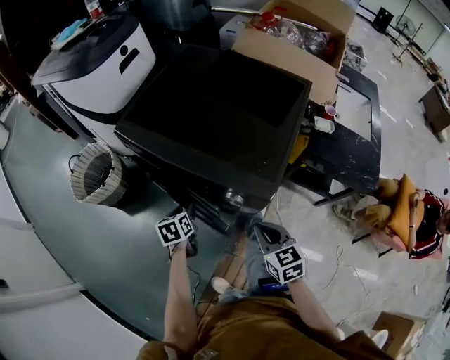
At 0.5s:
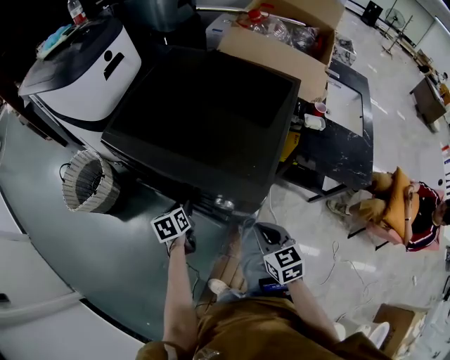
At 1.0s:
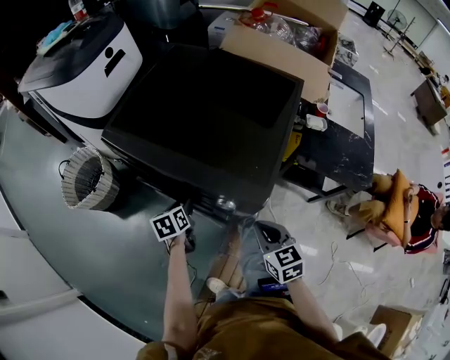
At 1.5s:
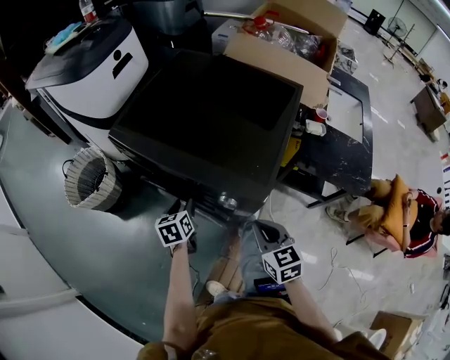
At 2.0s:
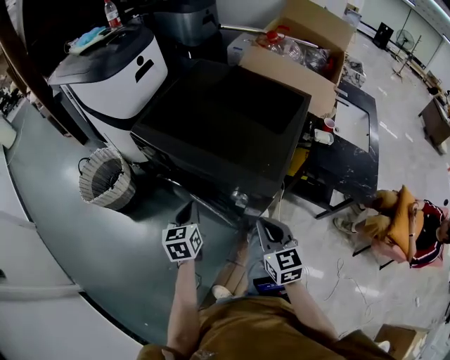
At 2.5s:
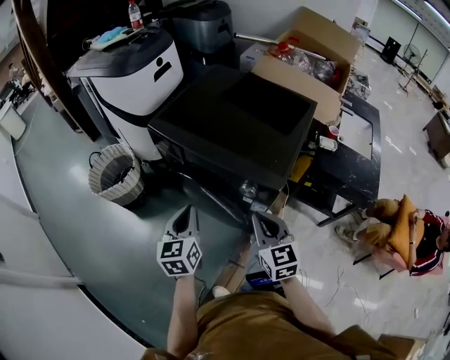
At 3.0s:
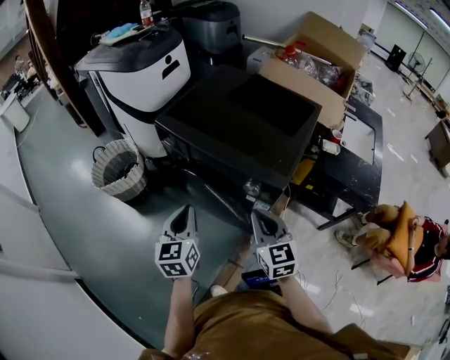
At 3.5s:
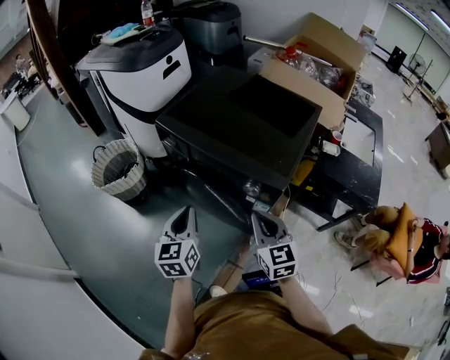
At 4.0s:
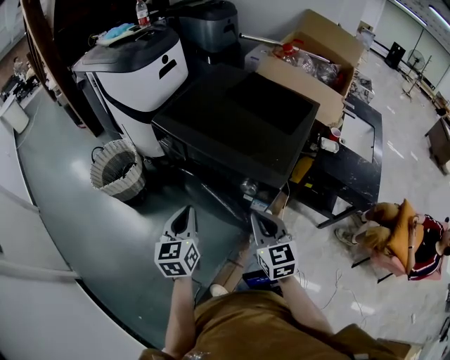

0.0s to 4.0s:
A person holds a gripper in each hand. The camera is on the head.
0.0s to 2.0s: The left gripper heads upward, covering approximately 10 cm, swivels some 20 degrees, and closes up, while the right gripper heads upward, covering roughly 5 cm.
2.0s to 4.0s: The right gripper moves about 5 cm; the left gripper travels backward and upward by about 15 cm.

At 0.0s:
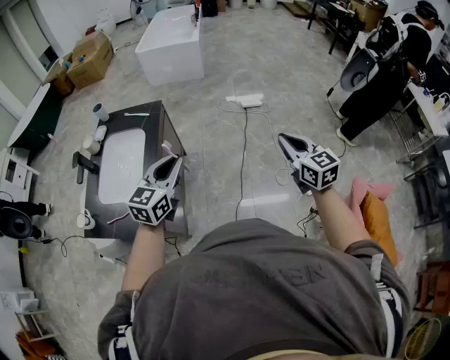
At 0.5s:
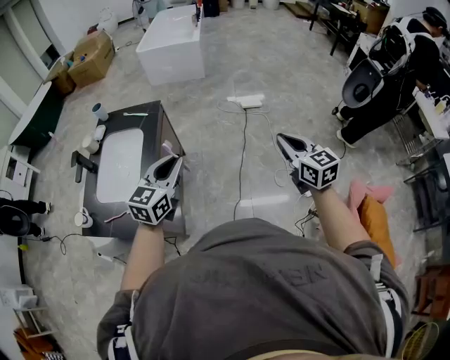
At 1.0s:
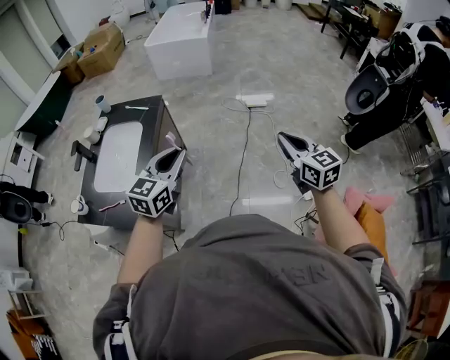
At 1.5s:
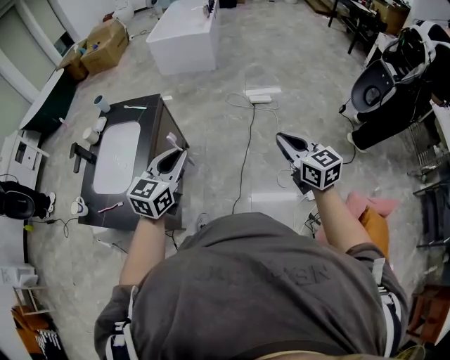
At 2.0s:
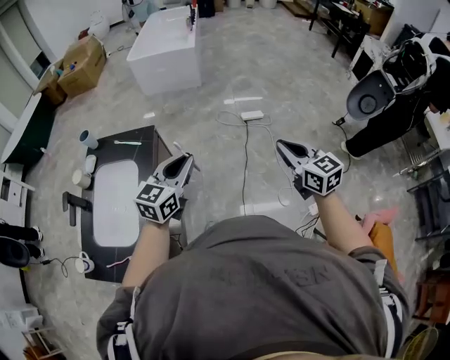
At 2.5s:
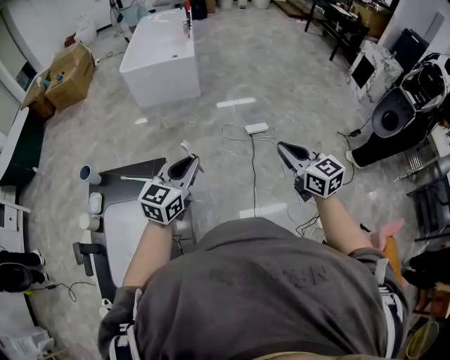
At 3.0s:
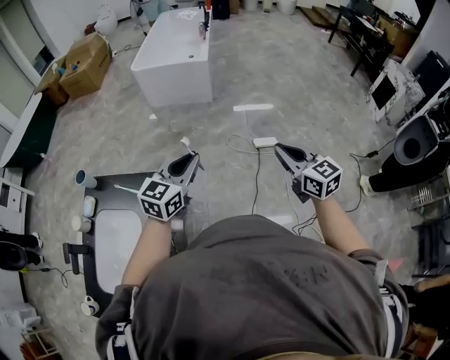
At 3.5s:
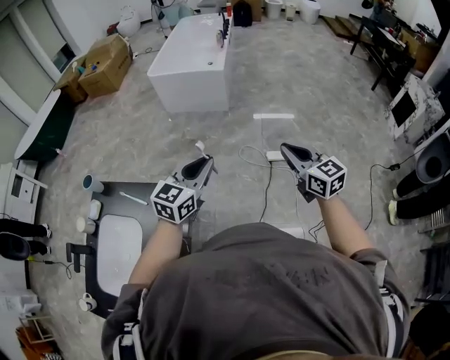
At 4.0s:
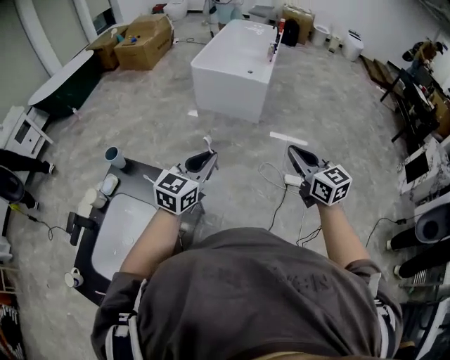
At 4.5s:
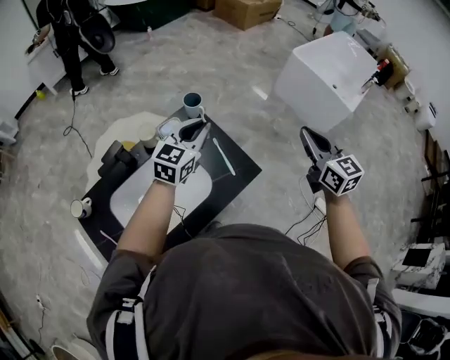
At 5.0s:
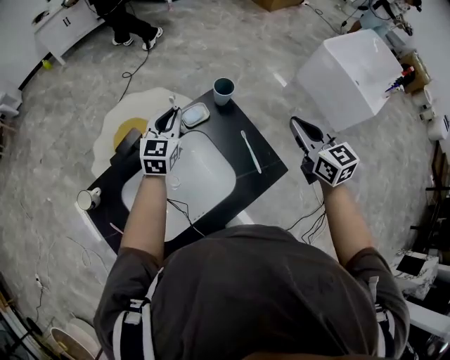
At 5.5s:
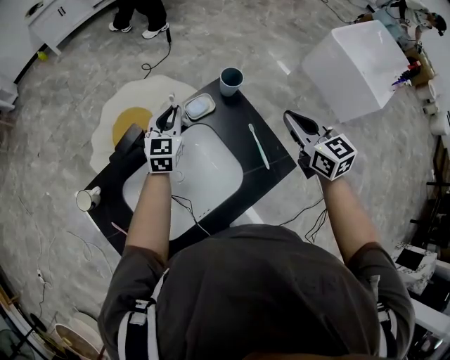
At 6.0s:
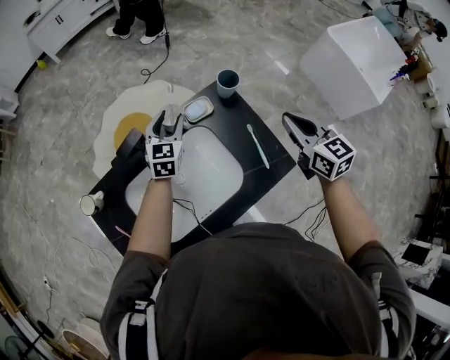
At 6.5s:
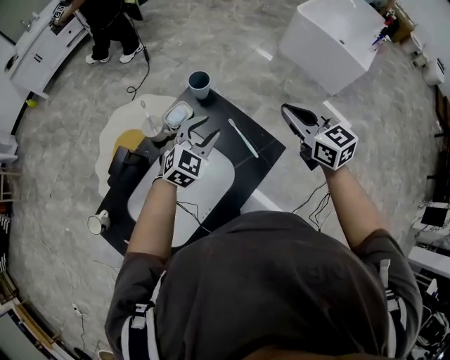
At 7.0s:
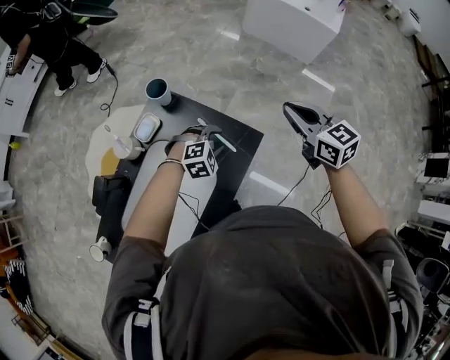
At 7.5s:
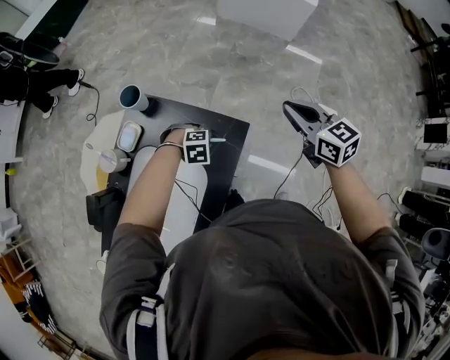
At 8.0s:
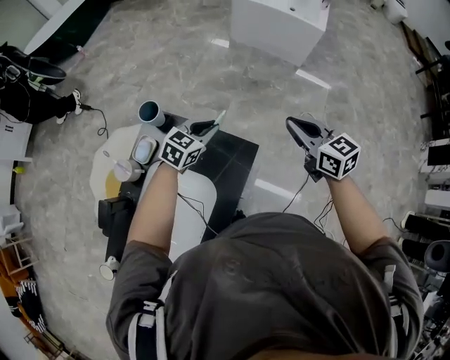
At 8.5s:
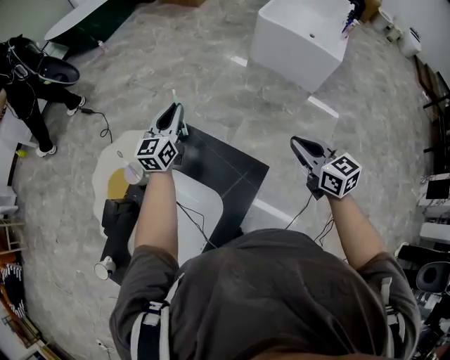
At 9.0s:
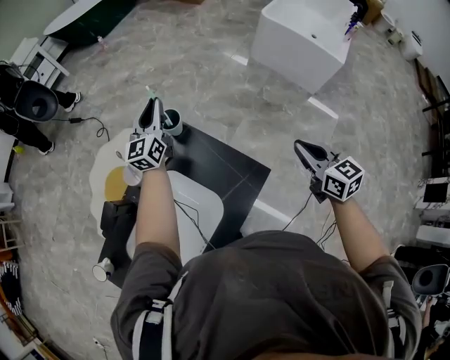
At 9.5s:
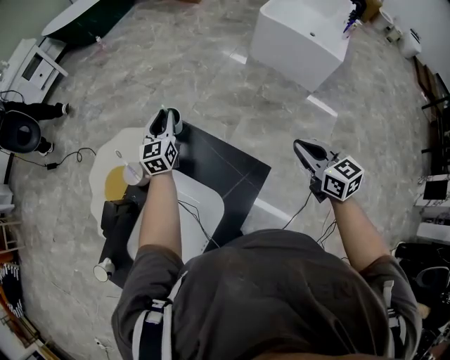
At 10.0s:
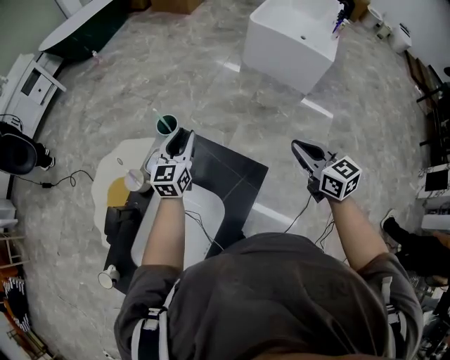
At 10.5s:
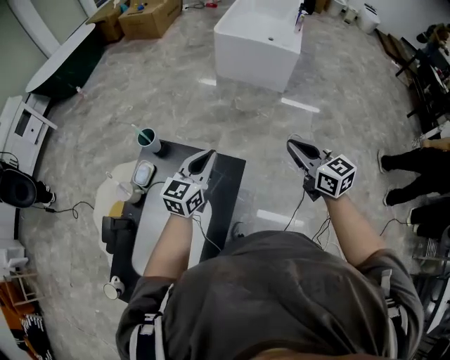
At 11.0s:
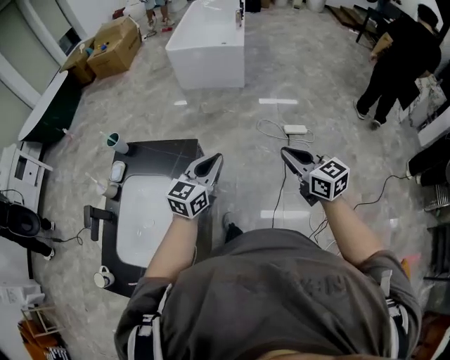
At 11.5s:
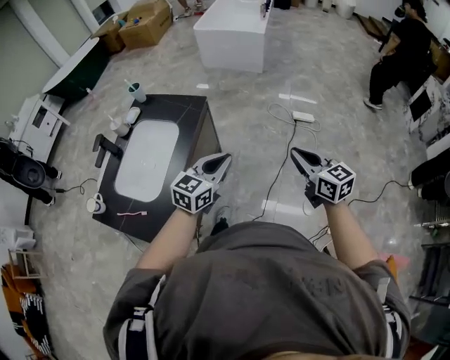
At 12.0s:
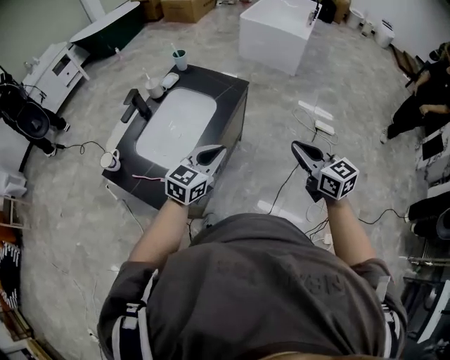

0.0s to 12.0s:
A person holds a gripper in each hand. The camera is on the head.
0.0s to 2.0s: The two grippers go roughly 20 cm forward.
2.0s to 4.0s: Both grippers move forward, some 40 cm.
4.0s to 6.0s: The pair of grippers is taken roughly 60 cm. The right gripper swivels approximately 40 degrees. Meanwhile the left gripper turns by some 60 degrees, and opens up.
6.0s to 8.0s: The right gripper moves some 25 cm, and swivels about 30 degrees. Meanwhile the left gripper swings up and down, approximately 20 cm each way, with 2 reversals, changes its angle by some 70 degrees, and closes.
8.0s to 10.0s: The left gripper swings up and down, approximately 10 cm each way, with 2 reversals, and changes its angle by roughly 40 degrees.
10.0s to 12.0s: The pair of grippers is taken about 60 cm. The left gripper swivels approximately 30 degrees, and closes its fingers.

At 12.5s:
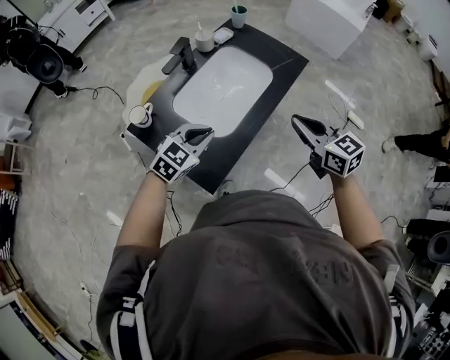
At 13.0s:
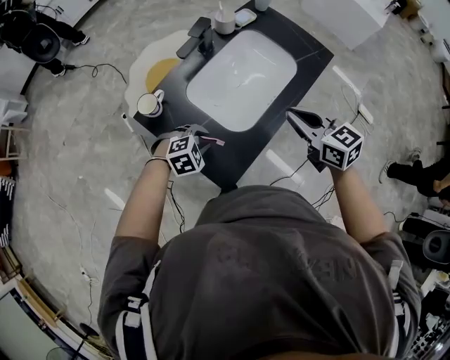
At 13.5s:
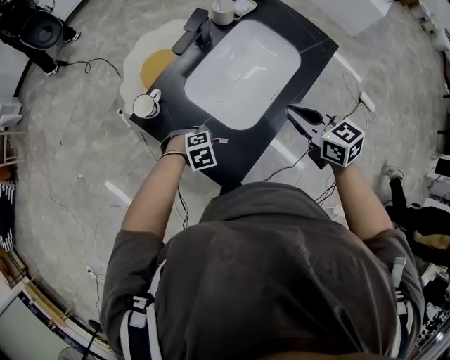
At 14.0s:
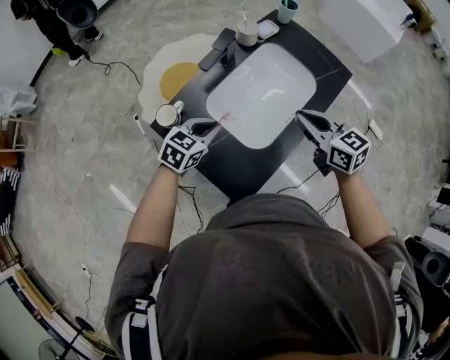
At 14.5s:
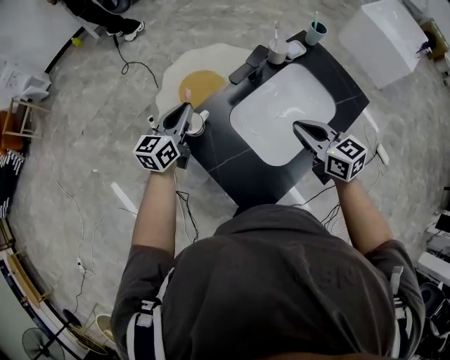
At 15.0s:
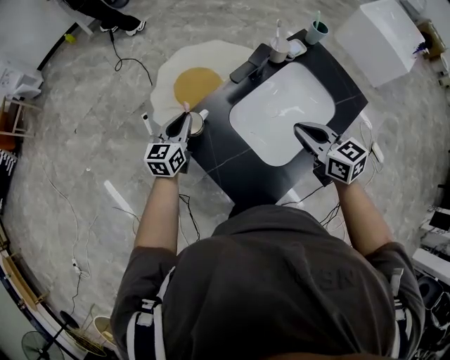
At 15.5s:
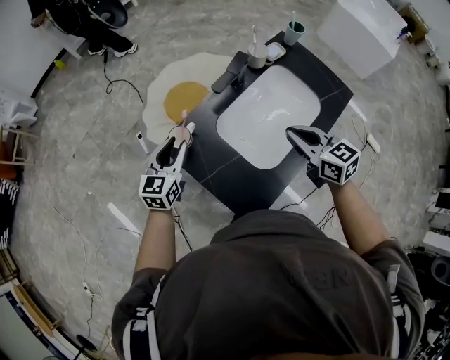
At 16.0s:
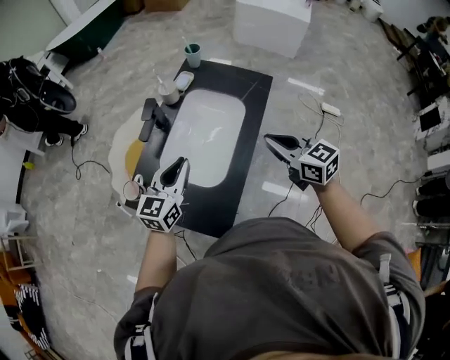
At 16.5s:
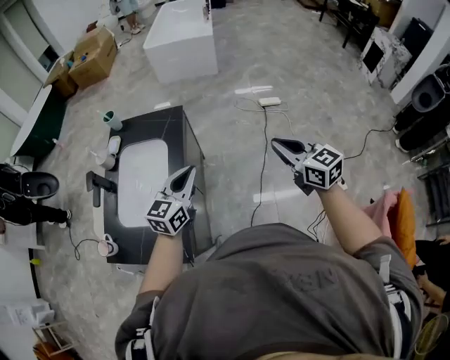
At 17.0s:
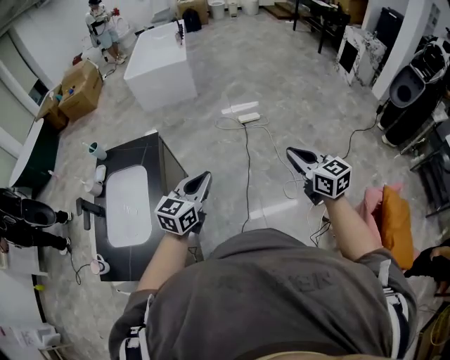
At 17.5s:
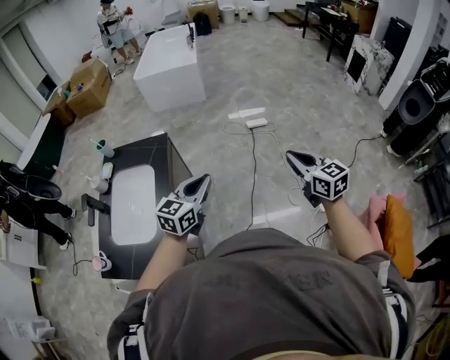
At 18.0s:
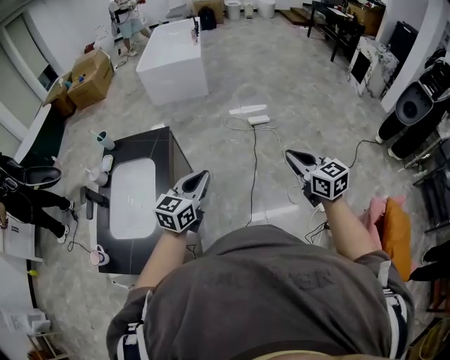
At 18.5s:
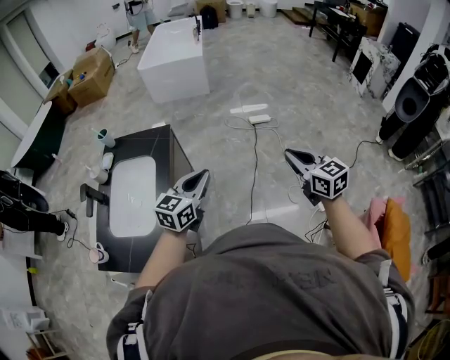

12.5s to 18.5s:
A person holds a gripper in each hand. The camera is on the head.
12.5s to 14.5s: The right gripper changes place by about 25 cm, while the left gripper goes downward and returns, some 20 cm each way, and rotates about 50 degrees.
14.5s to 16.5s: The pair of grippers is taken about 60 cm. The right gripper changes its angle by roughly 50 degrees, while the left gripper swivels some 50 degrees, and opens, then closes once more.
16.5s to 18.5s: The two grippers go roughly 15 cm to the right.

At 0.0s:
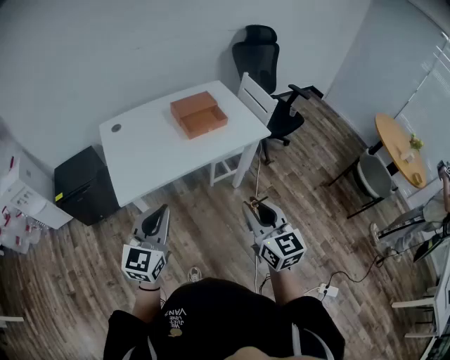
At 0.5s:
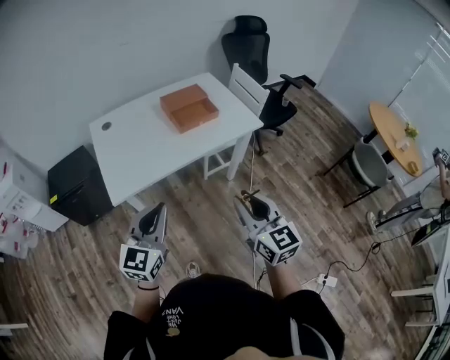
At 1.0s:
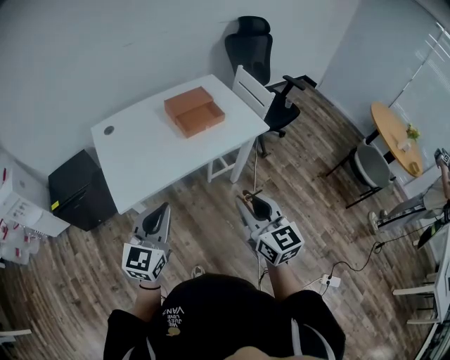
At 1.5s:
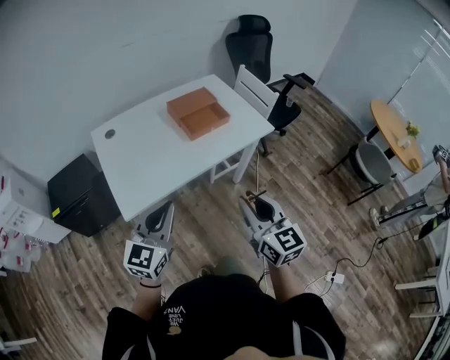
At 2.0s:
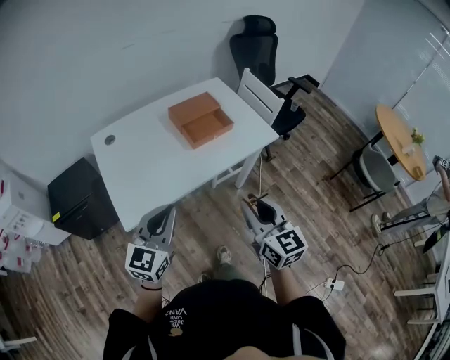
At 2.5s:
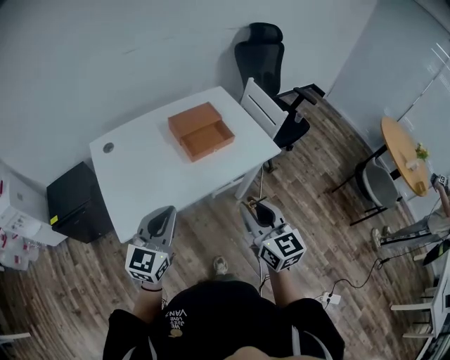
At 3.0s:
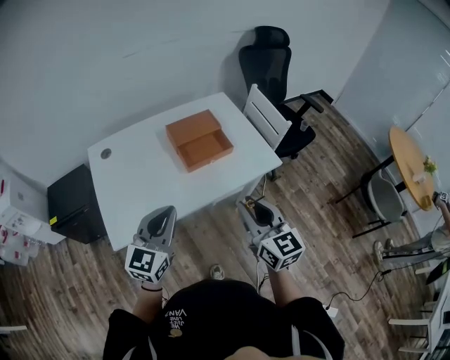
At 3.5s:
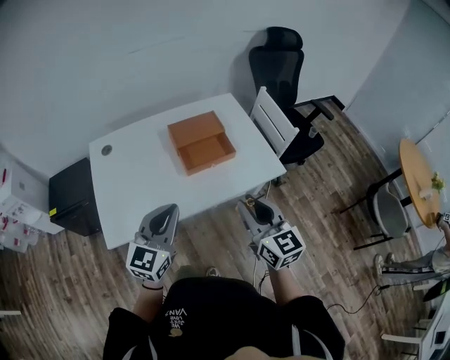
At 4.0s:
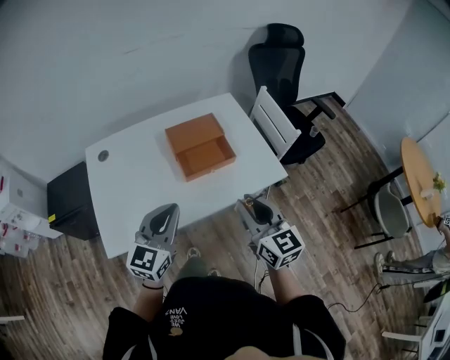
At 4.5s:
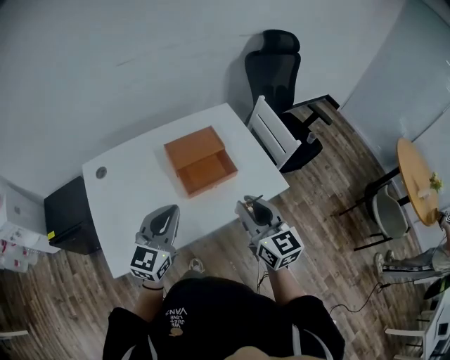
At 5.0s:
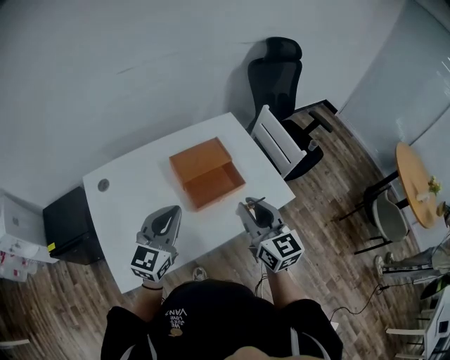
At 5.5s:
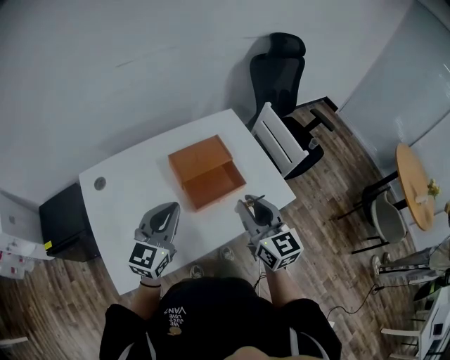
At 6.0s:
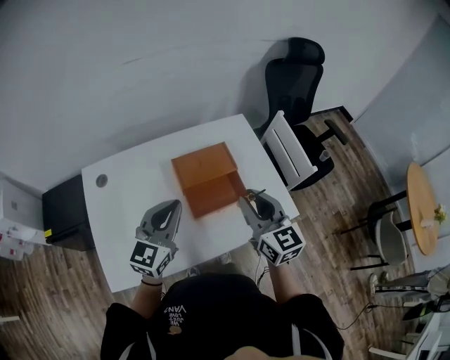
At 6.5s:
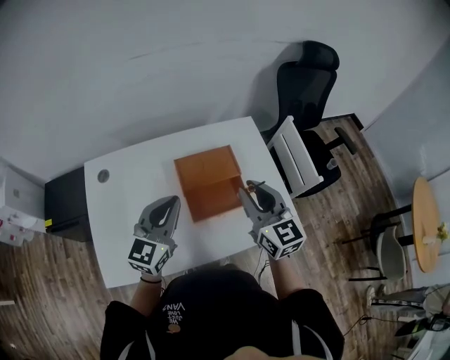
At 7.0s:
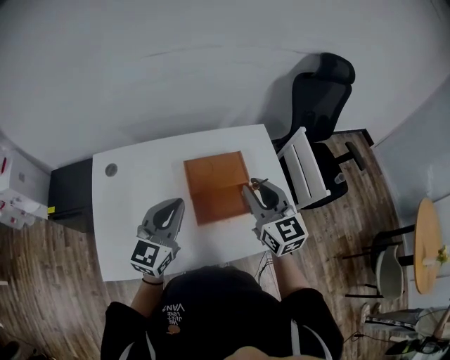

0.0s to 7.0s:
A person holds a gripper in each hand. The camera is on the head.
0.0s to 2.0s: The right gripper is displaced forward and to the left by about 15 cm. Meanwhile the left gripper moves forward, some 10 cm.
2.0s to 3.5s: The two grippers go approximately 15 cm forward and to the right.
3.5s to 5.0s: Both grippers travel together forward, about 15 cm.
5.0s to 7.0s: The left gripper moves forward, some 10 cm; the right gripper moves forward, roughly 15 cm.
